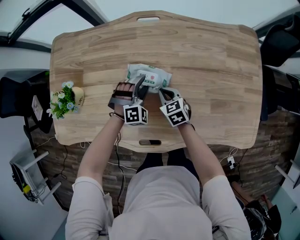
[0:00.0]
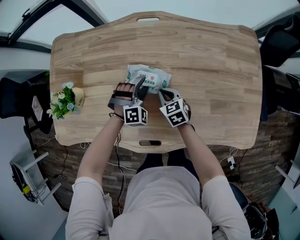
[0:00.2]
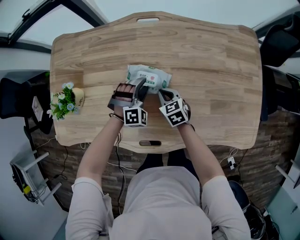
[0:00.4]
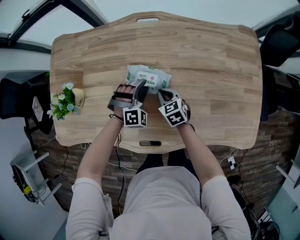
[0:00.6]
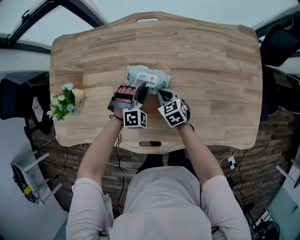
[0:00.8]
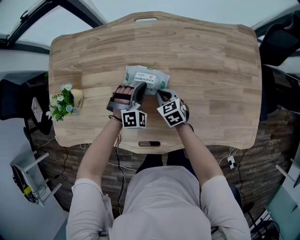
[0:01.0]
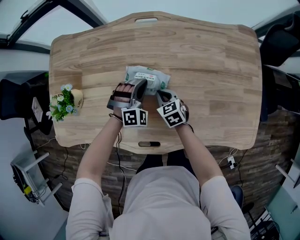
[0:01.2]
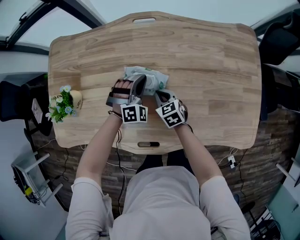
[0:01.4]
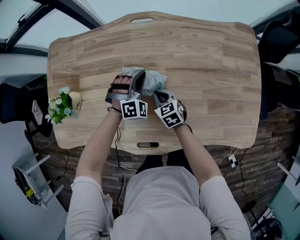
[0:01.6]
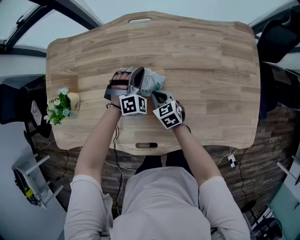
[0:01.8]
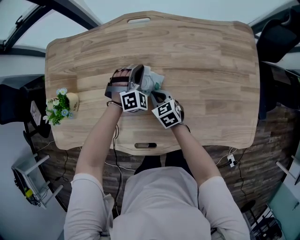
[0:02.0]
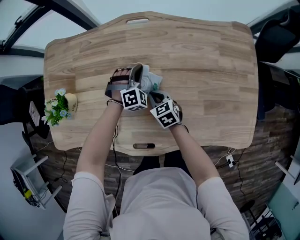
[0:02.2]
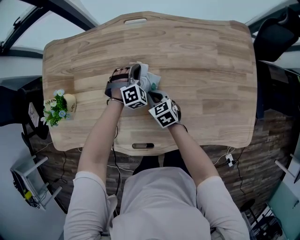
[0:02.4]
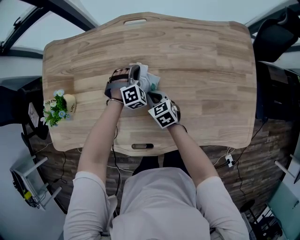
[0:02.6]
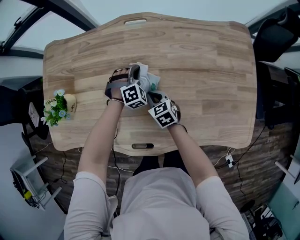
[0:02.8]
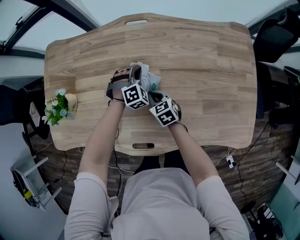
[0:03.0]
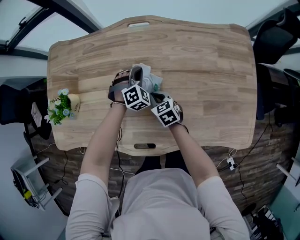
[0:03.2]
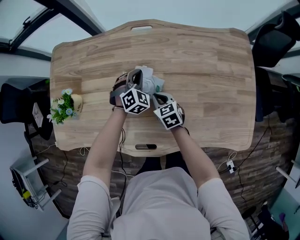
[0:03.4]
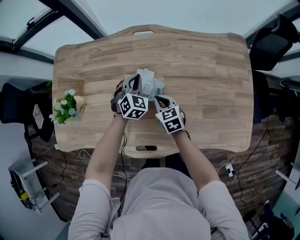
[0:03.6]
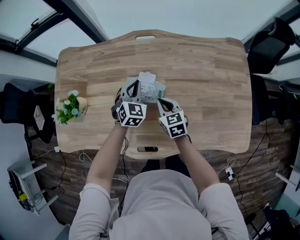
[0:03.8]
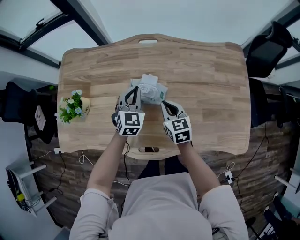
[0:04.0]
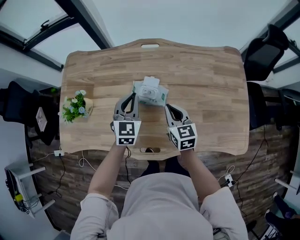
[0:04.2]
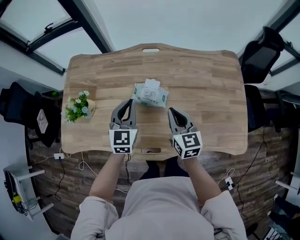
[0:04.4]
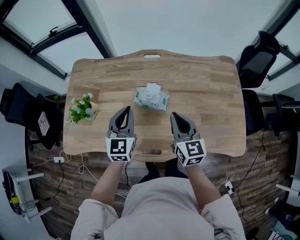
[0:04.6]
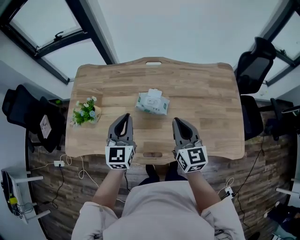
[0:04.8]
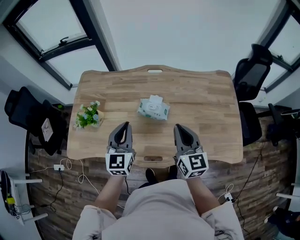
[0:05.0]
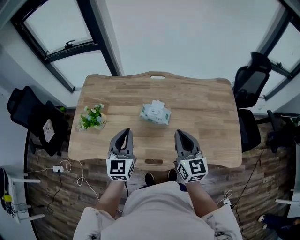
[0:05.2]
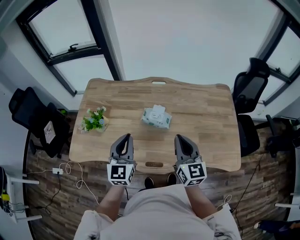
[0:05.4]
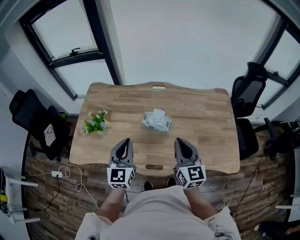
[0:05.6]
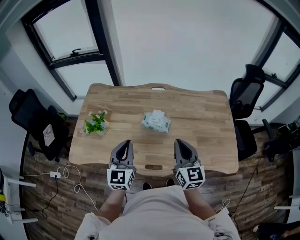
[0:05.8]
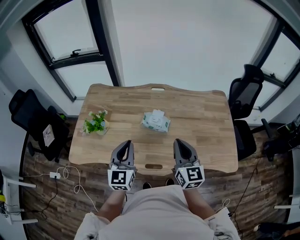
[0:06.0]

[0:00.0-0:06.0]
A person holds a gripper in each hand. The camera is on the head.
0:00.0 to 0:01.6: The left gripper shifts by some 5 cm, and closes its fingers.
0:01.6 to 0:03.0: The left gripper moves downward, about 5 cm.
0:03.0 to 0:04.4: The right gripper moves upward, approximately 25 cm, and turns by approximately 30 degrees, while the left gripper shifts about 30 cm upward, backward and to the left, and rolls counterclockwise, seen from behind, by roughly 60 degrees.
0:04.4 to 0:06.0: The right gripper goes roughly 20 cm upward and backward, while the left gripper shifts about 20 cm backward and upward.

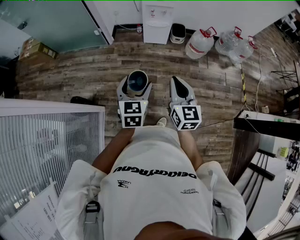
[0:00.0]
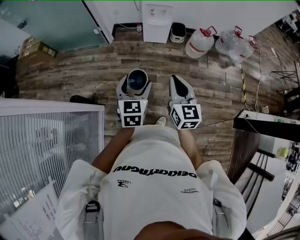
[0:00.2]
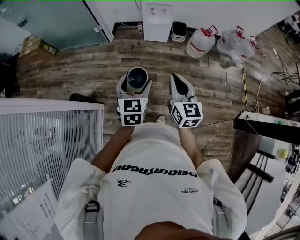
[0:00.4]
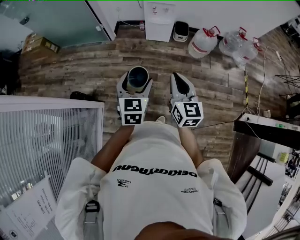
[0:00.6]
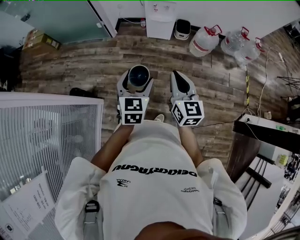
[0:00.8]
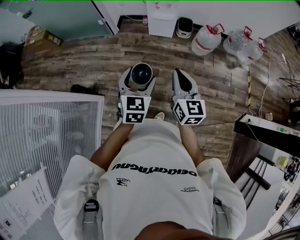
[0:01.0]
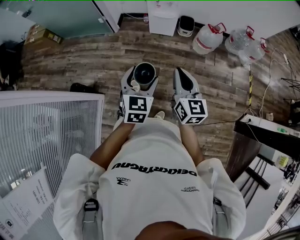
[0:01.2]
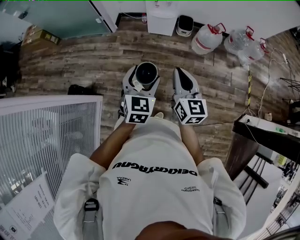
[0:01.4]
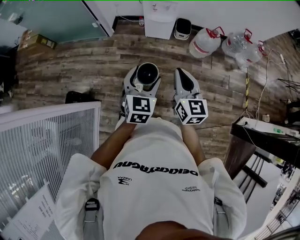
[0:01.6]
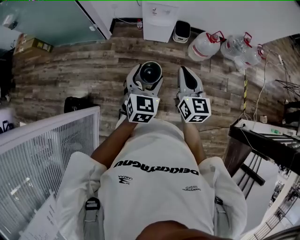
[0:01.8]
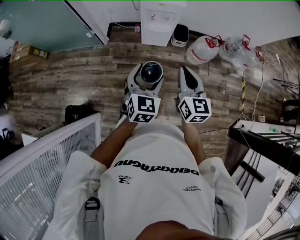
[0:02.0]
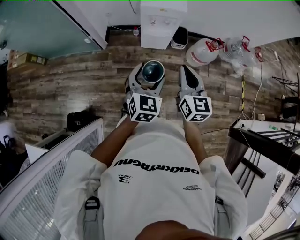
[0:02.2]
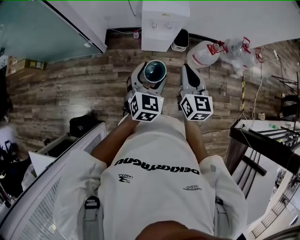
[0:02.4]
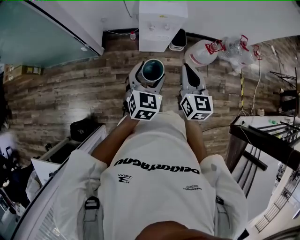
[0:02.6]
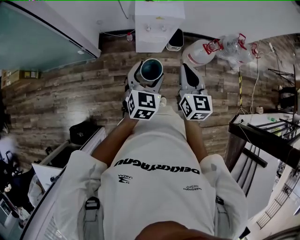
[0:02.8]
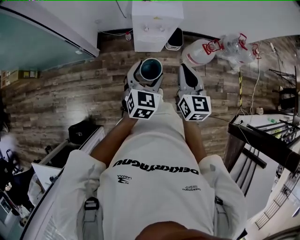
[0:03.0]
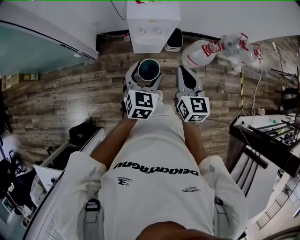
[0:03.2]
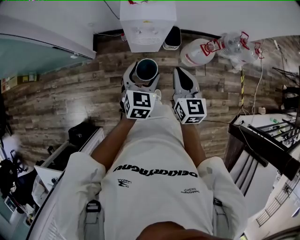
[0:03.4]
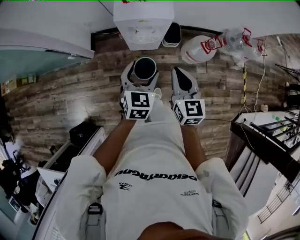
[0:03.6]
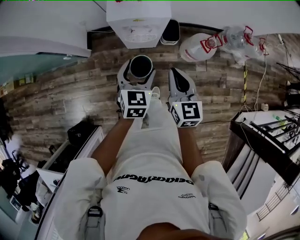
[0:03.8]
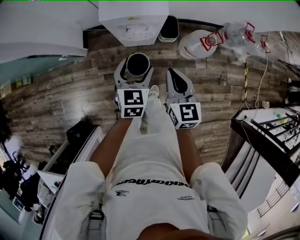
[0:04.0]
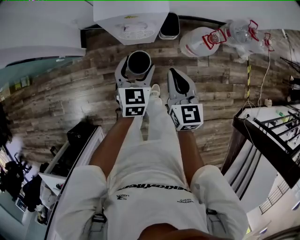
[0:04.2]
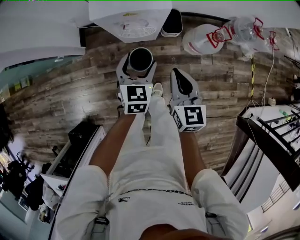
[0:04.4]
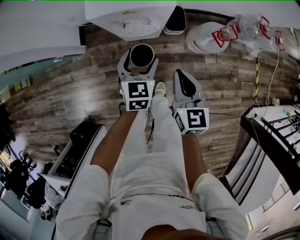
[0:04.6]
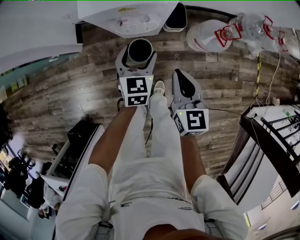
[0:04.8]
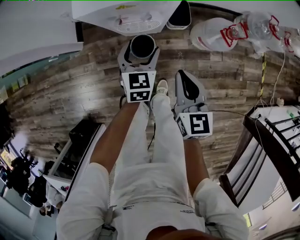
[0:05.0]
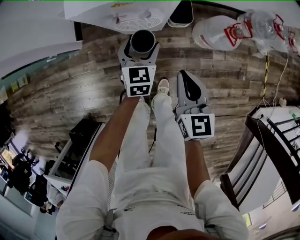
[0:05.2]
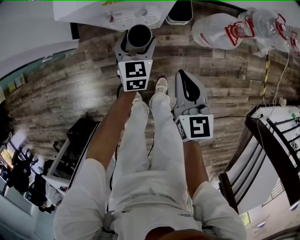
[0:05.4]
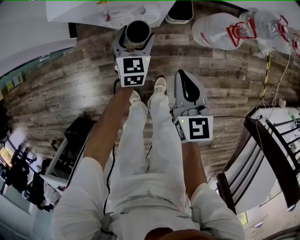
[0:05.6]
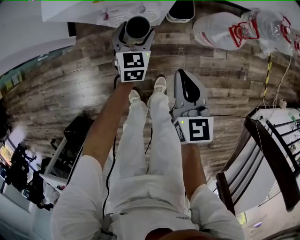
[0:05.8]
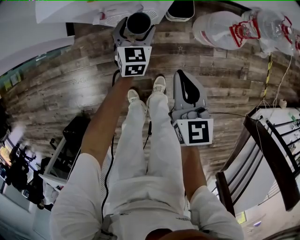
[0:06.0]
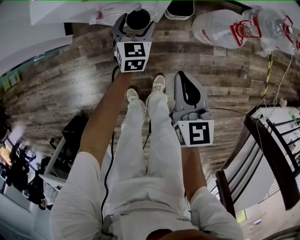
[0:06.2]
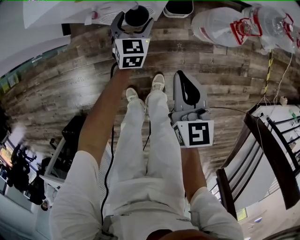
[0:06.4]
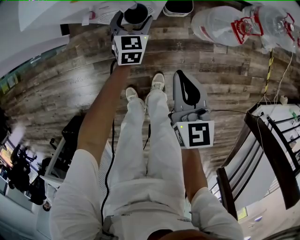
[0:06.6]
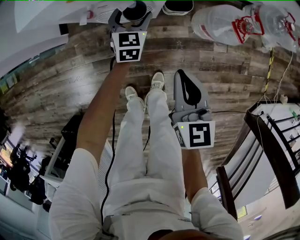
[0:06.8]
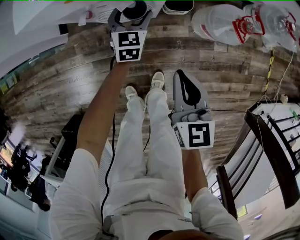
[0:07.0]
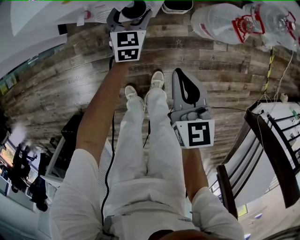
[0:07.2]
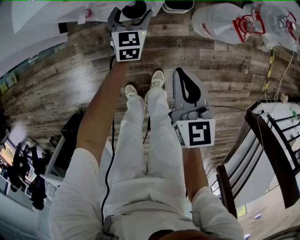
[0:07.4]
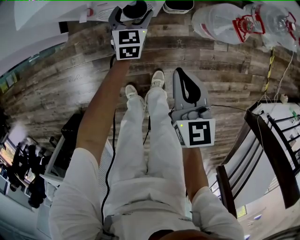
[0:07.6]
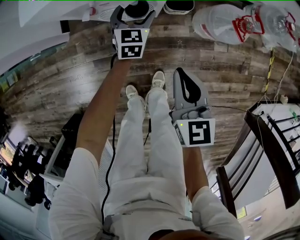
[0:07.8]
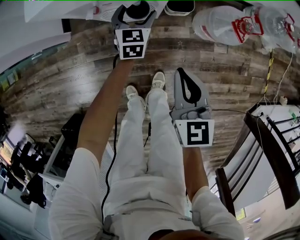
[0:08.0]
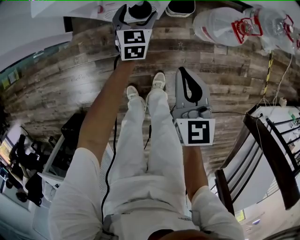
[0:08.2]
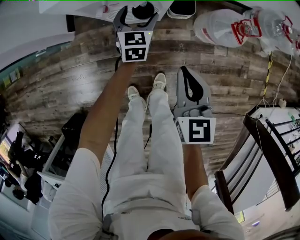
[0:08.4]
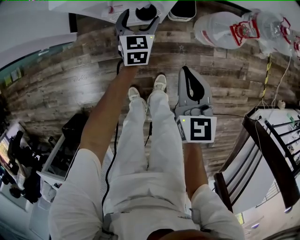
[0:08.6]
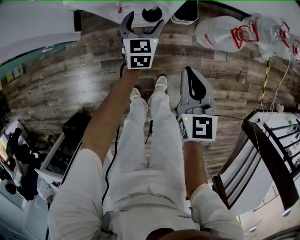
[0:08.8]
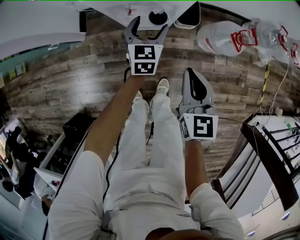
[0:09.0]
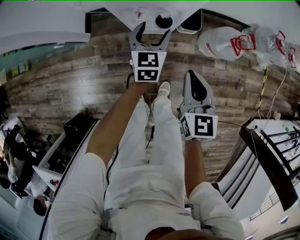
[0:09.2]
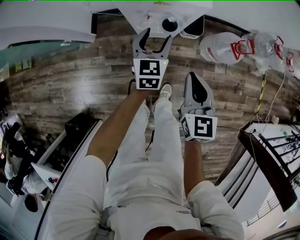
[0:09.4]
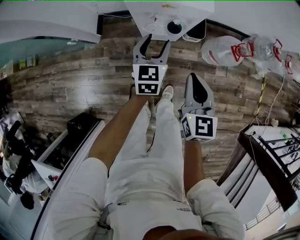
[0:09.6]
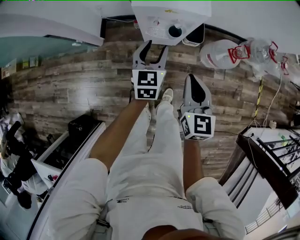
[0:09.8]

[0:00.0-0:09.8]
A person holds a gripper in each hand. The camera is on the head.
0:00.0 to 0:01.4: The grippers both shift to the right and forward by some 10 cm.
0:01.4 to 0:02.8: Both grippers are carried forward, roughly 40 cm.
0:02.8 to 0:04.2: The left gripper travels forward, downward and to the right by about 30 cm. Meanwhile the right gripper shifts some 25 cm downward, forward and to the right.
0:04.2 to 0:05.6: The left gripper is displaced downward and forward by approximately 30 cm; the right gripper travels downward by approximately 20 cm.
0:05.6 to 0:07.0: The left gripper moves downward and forward, some 10 cm.
0:07.0 to 0:08.4: The left gripper ends up approximately 5 cm from where it was.
0:08.4 to 0:09.8: The left gripper moves upward and backward, roughly 30 cm, and closes, while the right gripper travels upward and to the left by approximately 20 cm.

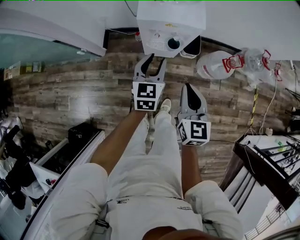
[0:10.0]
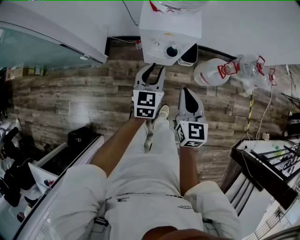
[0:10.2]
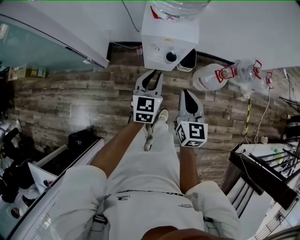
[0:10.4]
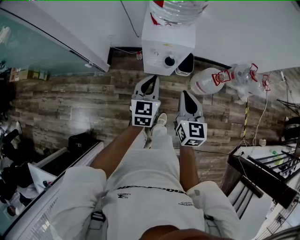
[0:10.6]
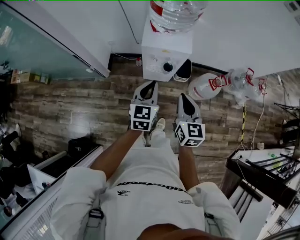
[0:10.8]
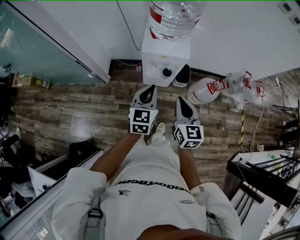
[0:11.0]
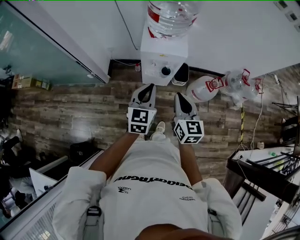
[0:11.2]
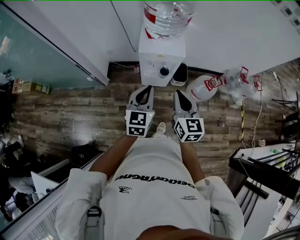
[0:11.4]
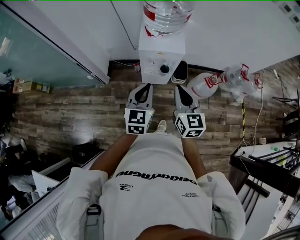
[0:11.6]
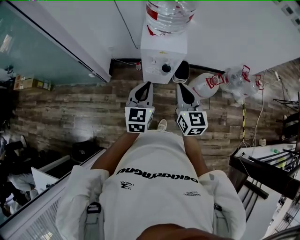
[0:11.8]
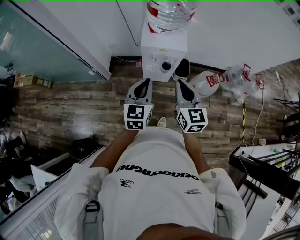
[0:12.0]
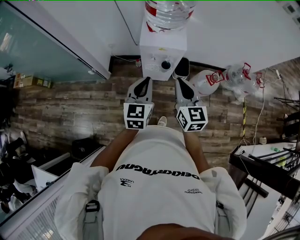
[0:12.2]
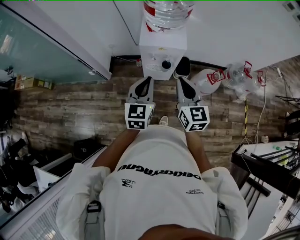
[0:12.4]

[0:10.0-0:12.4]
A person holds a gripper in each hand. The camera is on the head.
0:10.0 to 0:11.2: The right gripper travels upward by roughly 15 cm; the left gripper travels upward and backward by approximately 20 cm, and closes.
0:11.2 to 0:12.4: The grippers make only small movements.

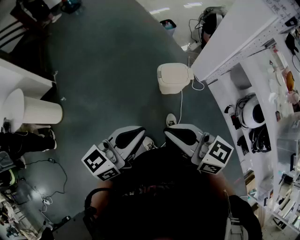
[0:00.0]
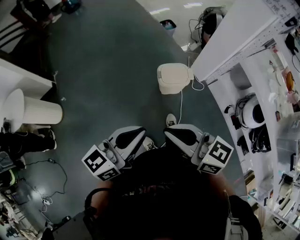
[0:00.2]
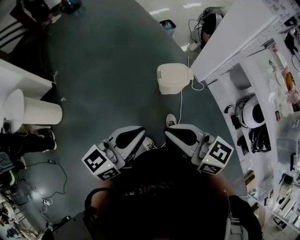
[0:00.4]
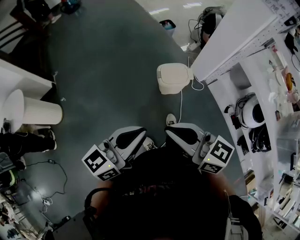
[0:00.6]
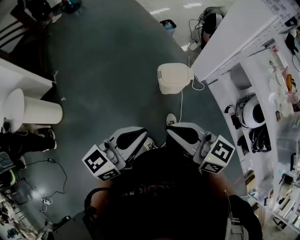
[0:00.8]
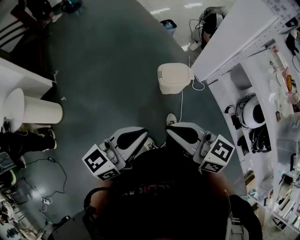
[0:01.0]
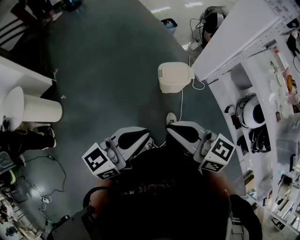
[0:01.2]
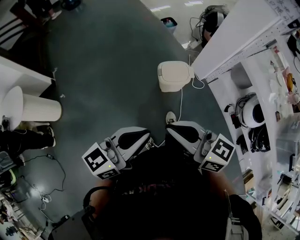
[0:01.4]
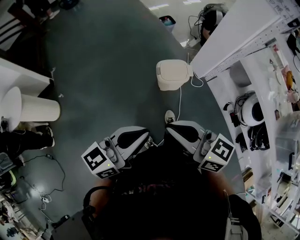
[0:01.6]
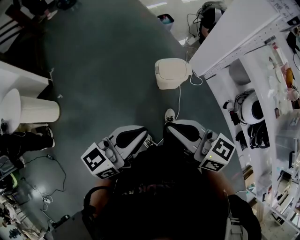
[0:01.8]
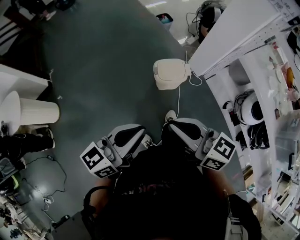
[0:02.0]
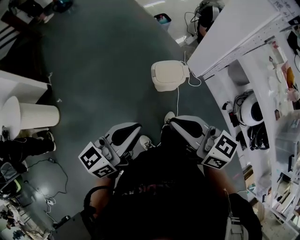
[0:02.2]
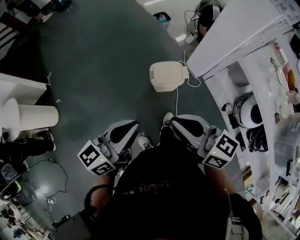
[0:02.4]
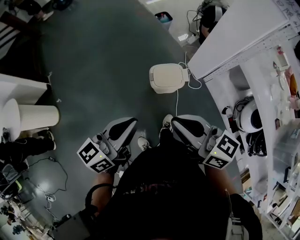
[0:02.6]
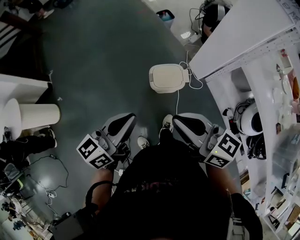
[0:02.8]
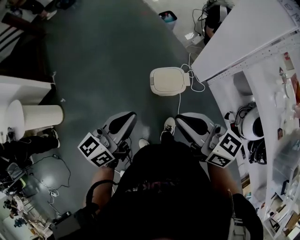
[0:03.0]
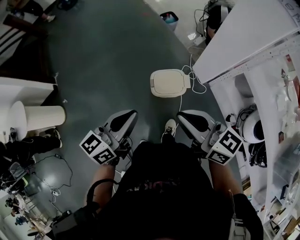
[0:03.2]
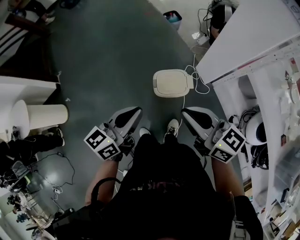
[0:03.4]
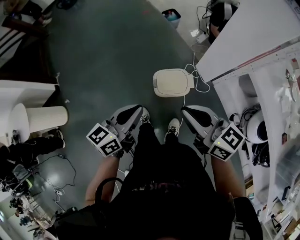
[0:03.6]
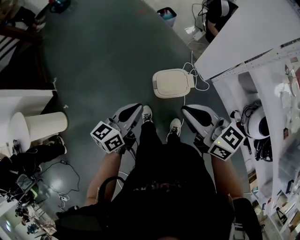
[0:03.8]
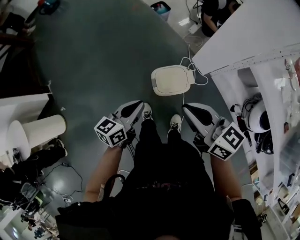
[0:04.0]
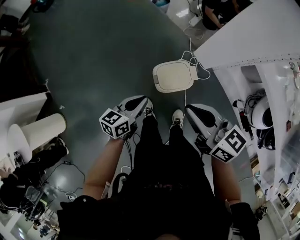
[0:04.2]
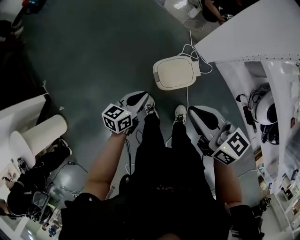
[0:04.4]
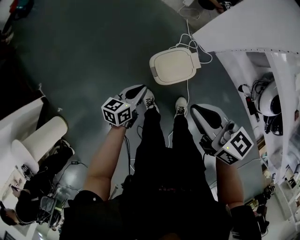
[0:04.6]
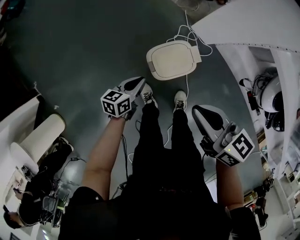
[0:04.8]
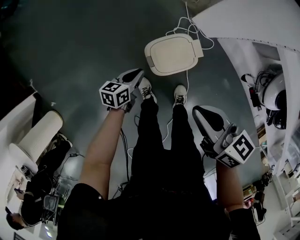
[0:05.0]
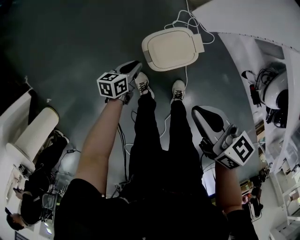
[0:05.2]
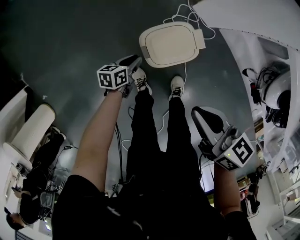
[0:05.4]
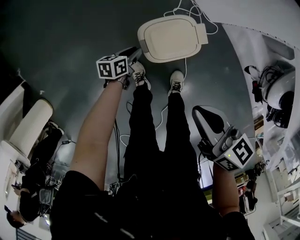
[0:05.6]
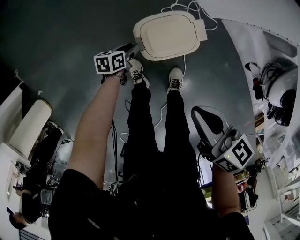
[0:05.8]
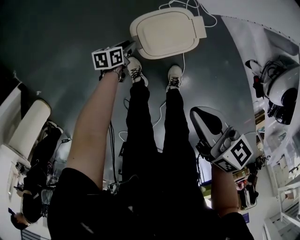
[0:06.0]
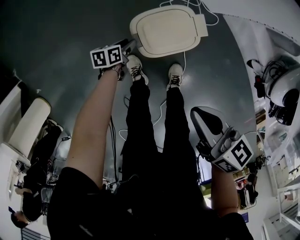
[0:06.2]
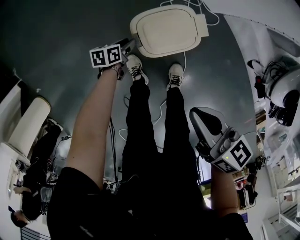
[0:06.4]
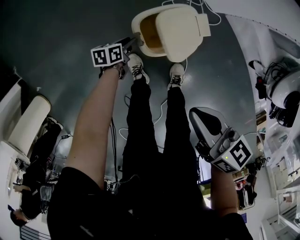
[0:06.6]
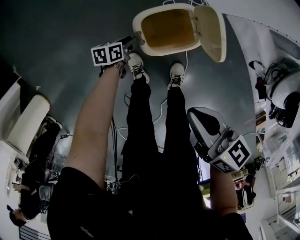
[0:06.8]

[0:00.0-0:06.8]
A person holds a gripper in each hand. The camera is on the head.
0:00.0 to 0:01.4: The grippers stay close to where they were, moving slightly.
0:01.4 to 0:02.8: The left gripper shifts about 20 cm forward. Meanwhile the right gripper is displaced forward and to the right by some 20 cm.
0:02.8 to 0:04.0: The right gripper travels forward and downward by approximately 15 cm, while the left gripper heads downward and forward, covering approximately 20 cm.
0:04.0 to 0:05.4: The left gripper heads downward, covering about 40 cm, and changes its angle by some 30 degrees, while the right gripper goes roughly 20 cm downward, and rotates approximately 30 degrees.
0:05.4 to 0:06.8: The left gripper moves downward, about 10 cm, while the right gripper travels downward by approximately 5 cm.
